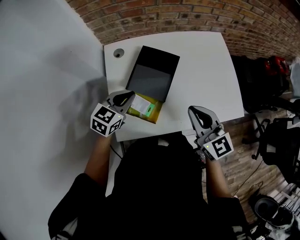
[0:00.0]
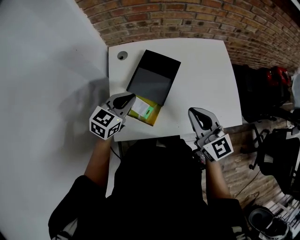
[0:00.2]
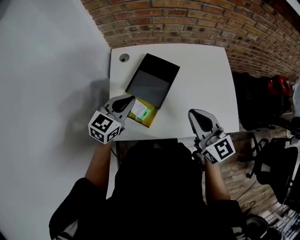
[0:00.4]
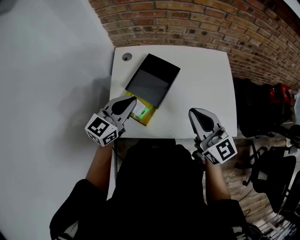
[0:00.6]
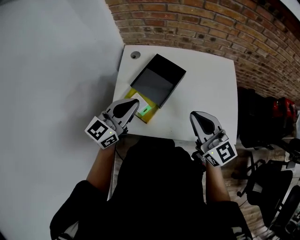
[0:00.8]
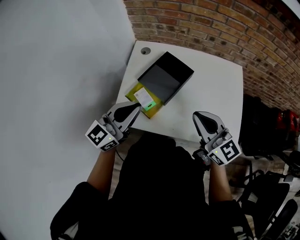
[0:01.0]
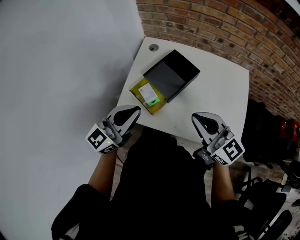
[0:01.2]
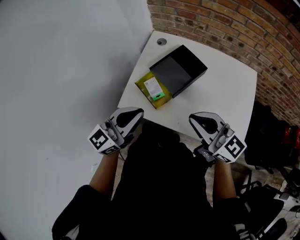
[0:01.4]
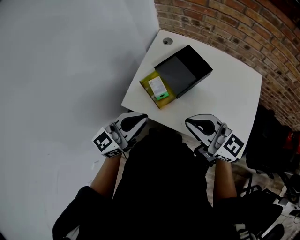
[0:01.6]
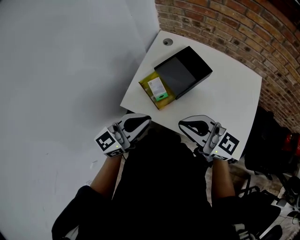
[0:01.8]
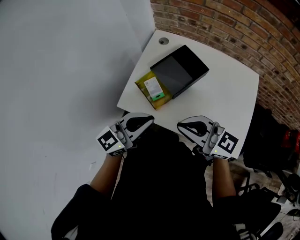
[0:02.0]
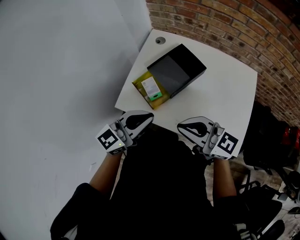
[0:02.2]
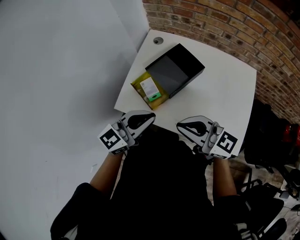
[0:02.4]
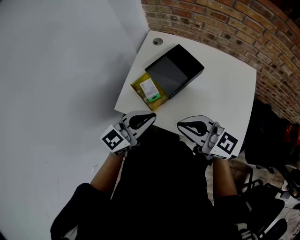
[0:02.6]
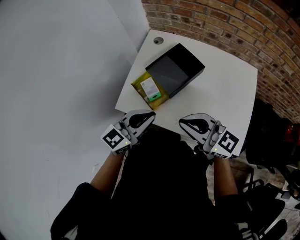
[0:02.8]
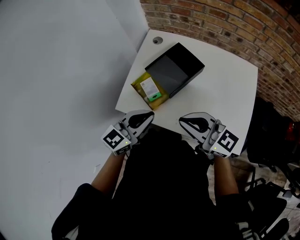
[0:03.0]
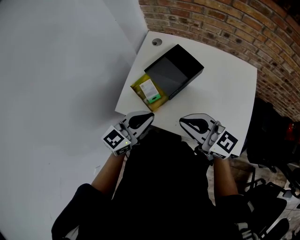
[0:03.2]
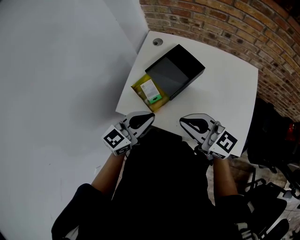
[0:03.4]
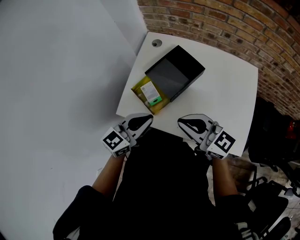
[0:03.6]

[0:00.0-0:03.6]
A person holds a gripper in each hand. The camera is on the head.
0:00.0 to 0:01.8: The right gripper shifts by about 10 cm, and changes its angle by roughly 60 degrees. The left gripper moves roughly 25 cm, and tilts its fingers approximately 30 degrees upward.
0:01.8 to 0:03.6: The left gripper goes approximately 5 cm downward; the right gripper shifts by some 5 cm.

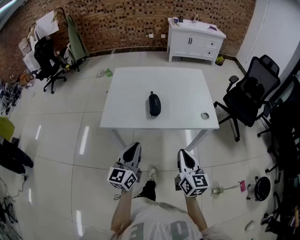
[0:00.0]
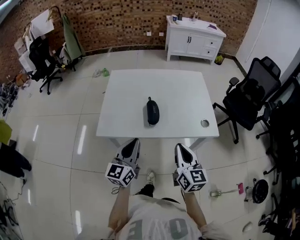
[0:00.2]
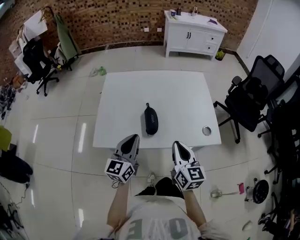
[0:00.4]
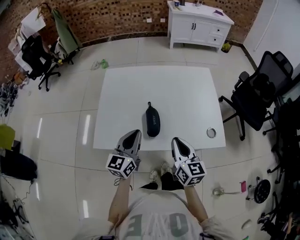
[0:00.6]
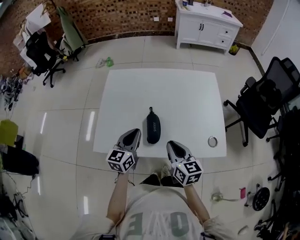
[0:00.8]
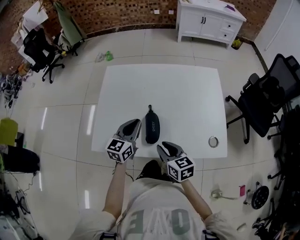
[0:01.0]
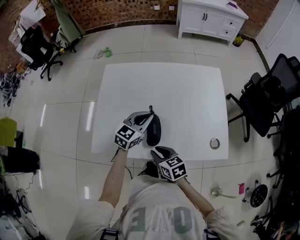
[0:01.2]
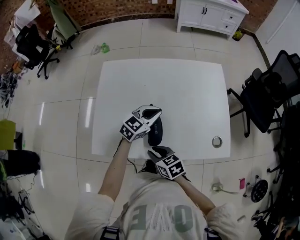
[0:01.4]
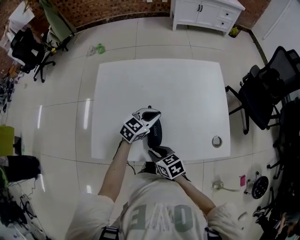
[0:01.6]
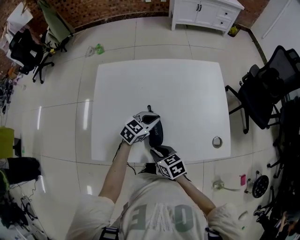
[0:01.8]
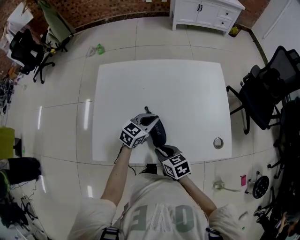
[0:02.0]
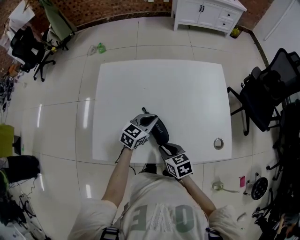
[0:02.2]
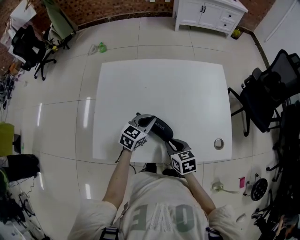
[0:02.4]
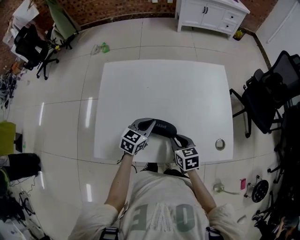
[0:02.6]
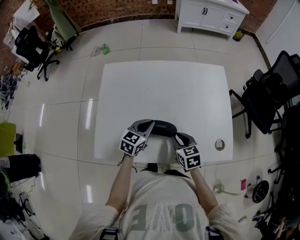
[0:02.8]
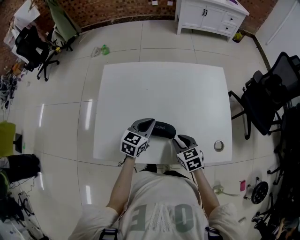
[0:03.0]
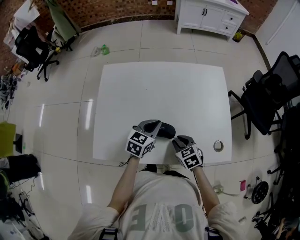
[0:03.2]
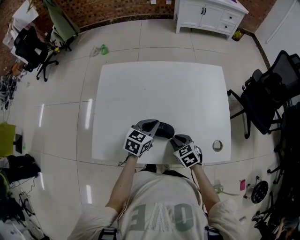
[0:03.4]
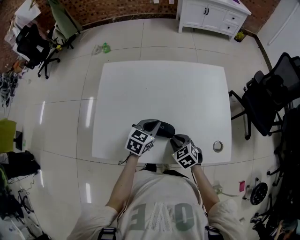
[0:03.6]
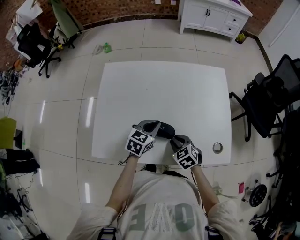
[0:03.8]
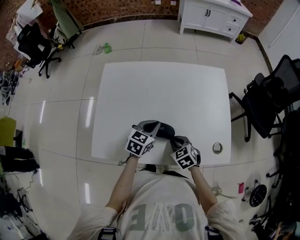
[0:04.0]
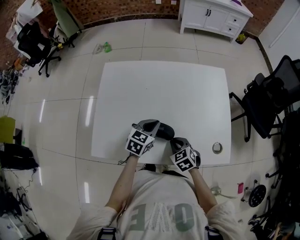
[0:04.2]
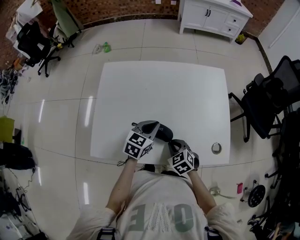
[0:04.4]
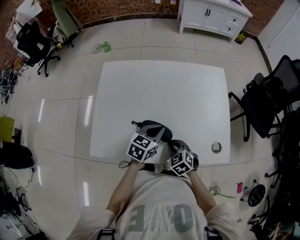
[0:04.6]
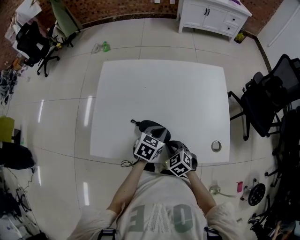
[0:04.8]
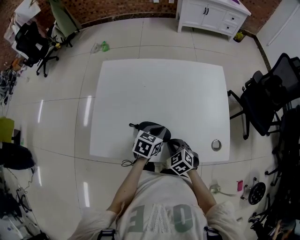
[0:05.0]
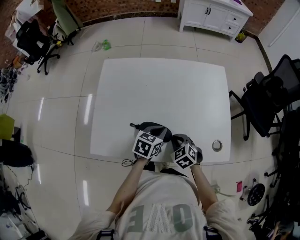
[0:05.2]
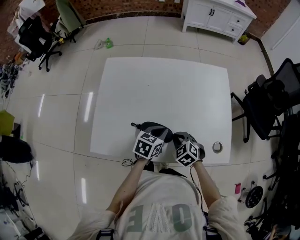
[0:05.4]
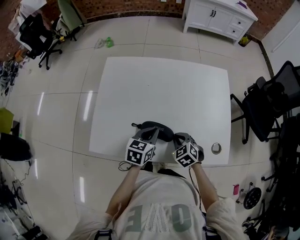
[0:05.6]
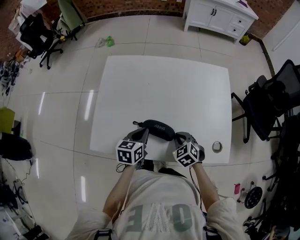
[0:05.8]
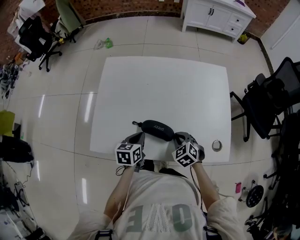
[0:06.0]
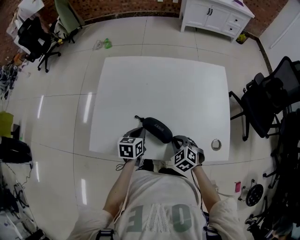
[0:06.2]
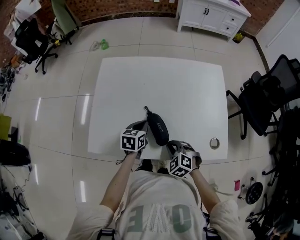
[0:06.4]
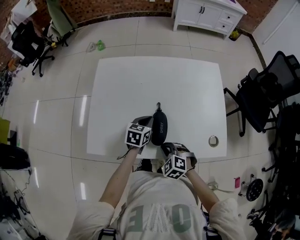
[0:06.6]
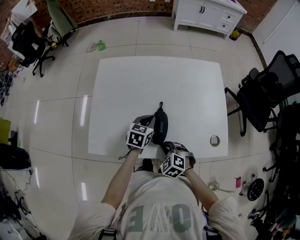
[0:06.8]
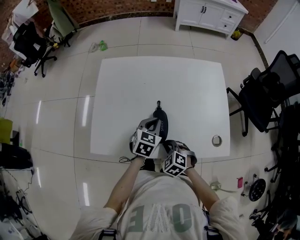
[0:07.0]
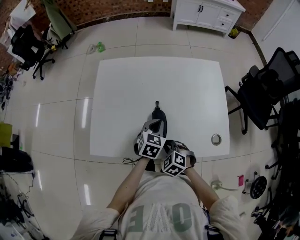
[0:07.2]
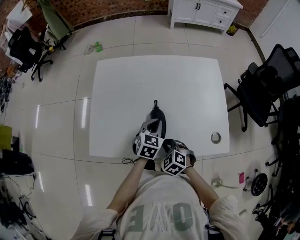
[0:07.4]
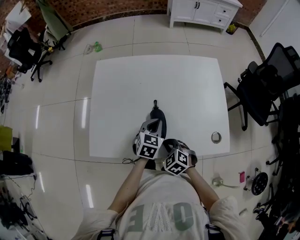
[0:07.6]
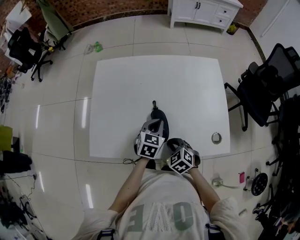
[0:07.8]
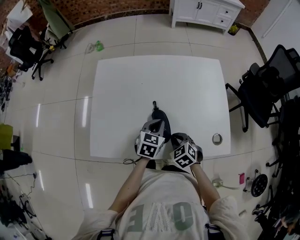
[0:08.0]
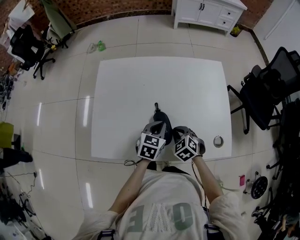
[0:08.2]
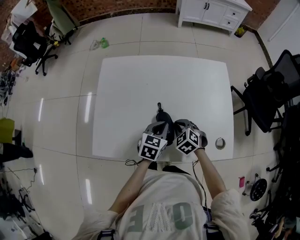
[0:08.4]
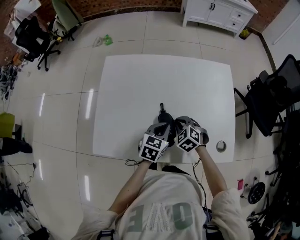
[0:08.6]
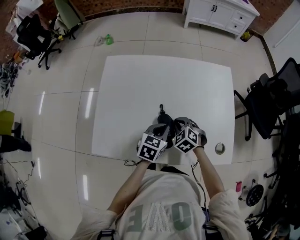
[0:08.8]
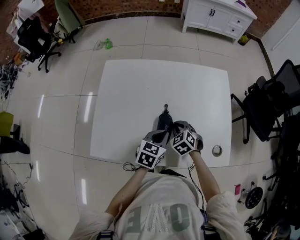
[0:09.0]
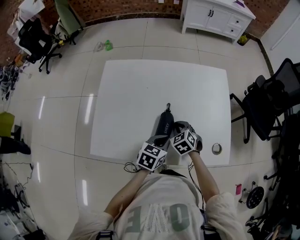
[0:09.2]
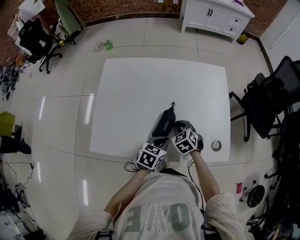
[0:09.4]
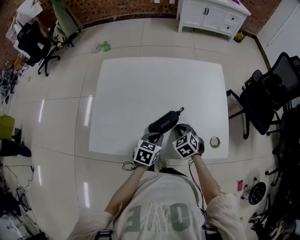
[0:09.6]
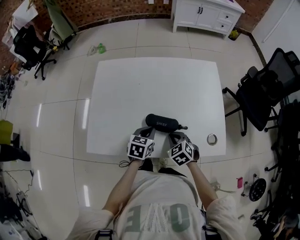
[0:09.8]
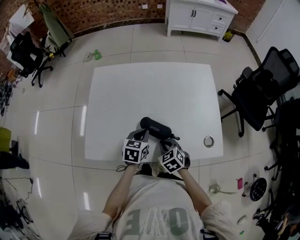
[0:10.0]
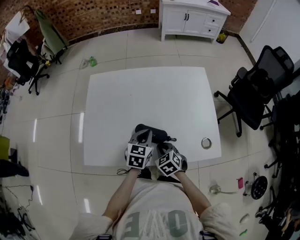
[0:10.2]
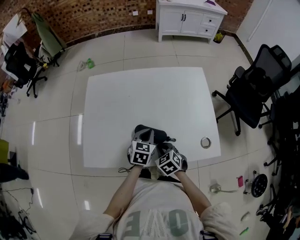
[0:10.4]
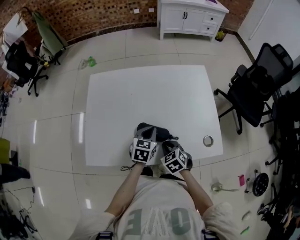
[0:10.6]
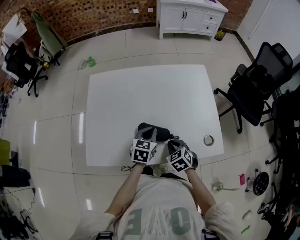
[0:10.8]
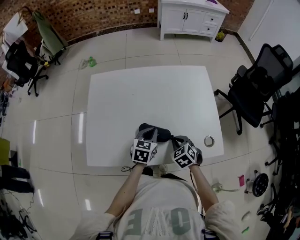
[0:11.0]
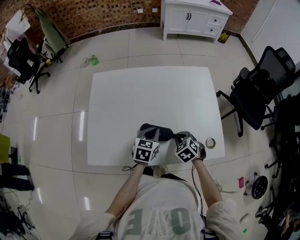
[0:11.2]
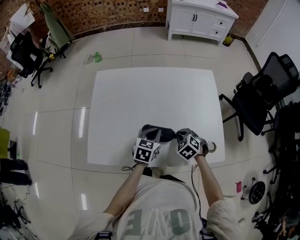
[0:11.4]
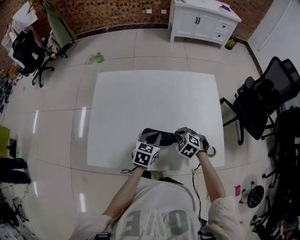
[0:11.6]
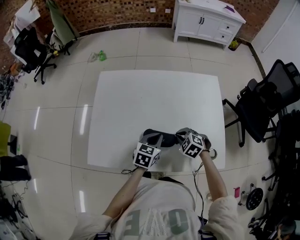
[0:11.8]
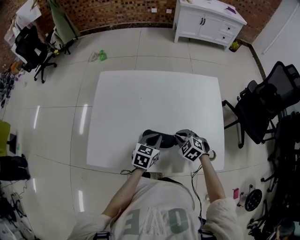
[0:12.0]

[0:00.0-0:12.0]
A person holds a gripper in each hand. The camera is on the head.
0:00.0 to 0:01.6: The left gripper travels forward by some 40 cm, and turns by approximately 50 degrees, while the right gripper travels forward, downward and to the left by about 35 cm, and swivels approximately 50 degrees.
0:01.6 to 0:03.0: The right gripper heads to the right and forward, covering about 15 cm, and rotates some 20 degrees, while the left gripper turns by about 20 degrees.
0:03.0 to 0:04.4: There are only small adjustments of the grippers.
0:04.4 to 0:06.0: The left gripper shifts some 10 cm to the left and backward, and rotates some 30 degrees.
0:06.0 to 0:07.6: The right gripper moves backward and to the left, some 10 cm. Meanwhile the left gripper travels to the right by roughly 10 cm, and turns by some 30 degrees.
0:07.6 to 0:09.0: The right gripper travels forward by roughly 15 cm.
0:09.0 to 0:10.4: The right gripper goes roughly 10 cm backward.
0:10.4 to 0:12.0: The right gripper moves forward, about 10 cm, and swivels approximately 30 degrees.

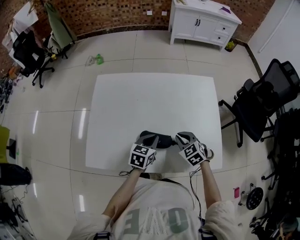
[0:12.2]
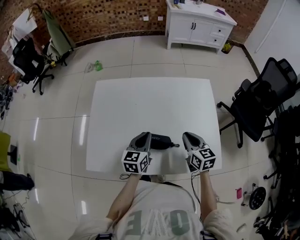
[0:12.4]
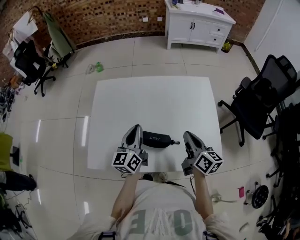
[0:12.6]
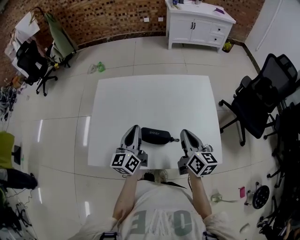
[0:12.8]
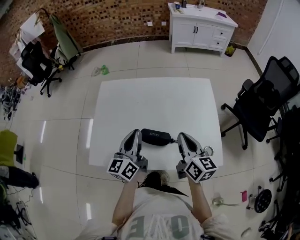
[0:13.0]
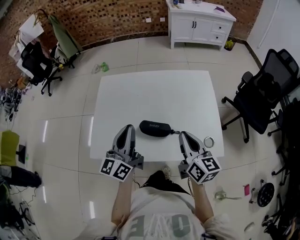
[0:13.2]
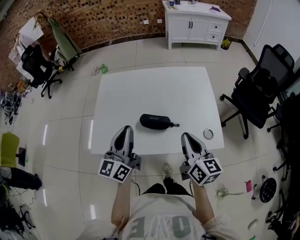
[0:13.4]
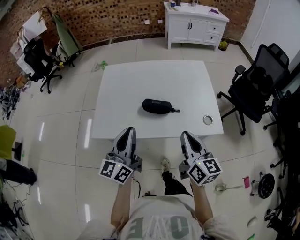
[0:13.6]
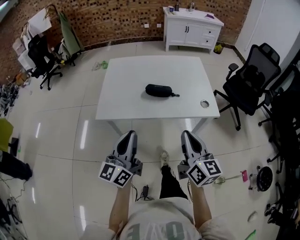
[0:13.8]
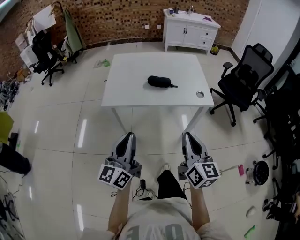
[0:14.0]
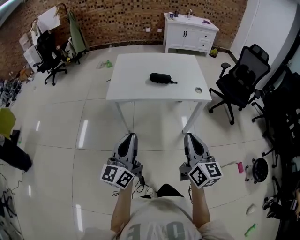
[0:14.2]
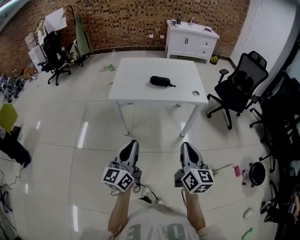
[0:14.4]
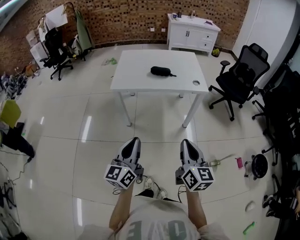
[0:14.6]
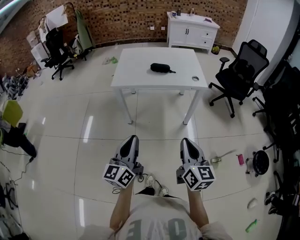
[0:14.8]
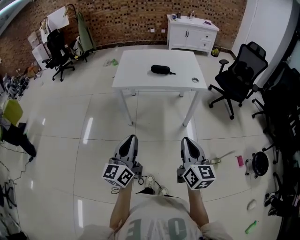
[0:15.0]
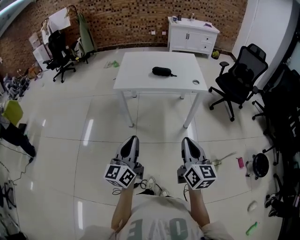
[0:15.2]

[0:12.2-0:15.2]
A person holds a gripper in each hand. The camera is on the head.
0:12.2 to 0:13.8: The pair of grippers is taken backward, approximately 40 cm. Both grippers move upward, roughly 20 cm. The right gripper points its fingers roughly 40 degrees further upward. The left gripper tips its fingers upward by roughly 50 degrees.
0:13.8 to 0:15.2: Both grippers move backward, roughly 40 cm.

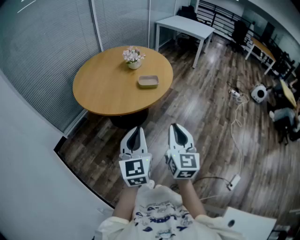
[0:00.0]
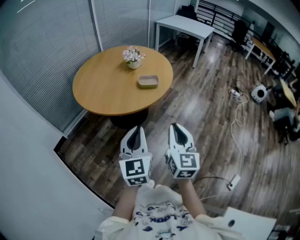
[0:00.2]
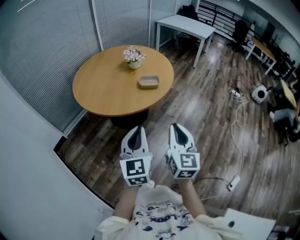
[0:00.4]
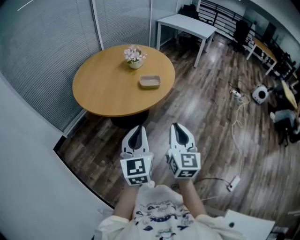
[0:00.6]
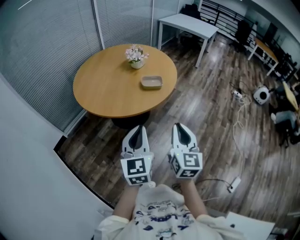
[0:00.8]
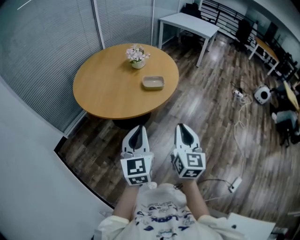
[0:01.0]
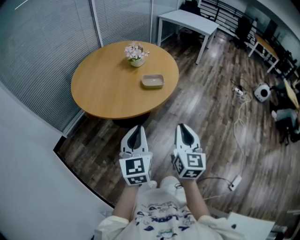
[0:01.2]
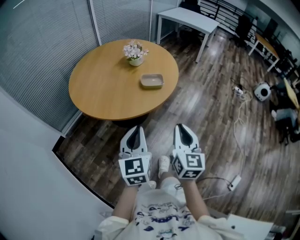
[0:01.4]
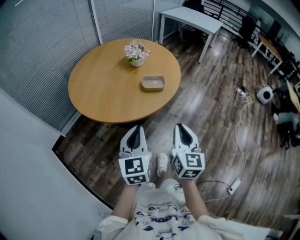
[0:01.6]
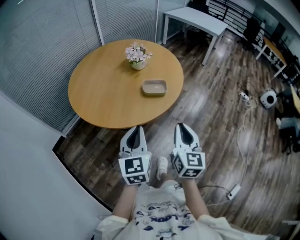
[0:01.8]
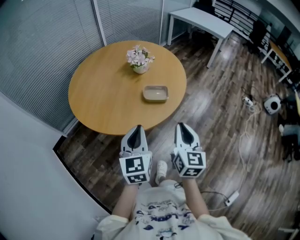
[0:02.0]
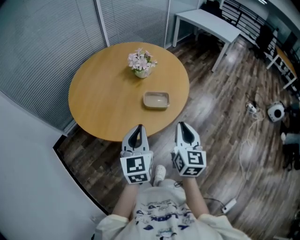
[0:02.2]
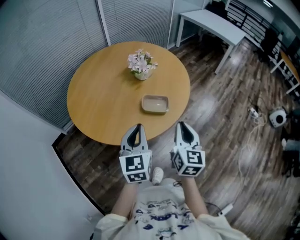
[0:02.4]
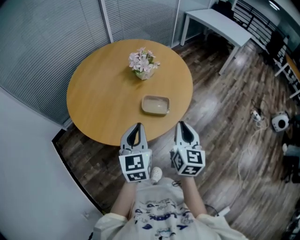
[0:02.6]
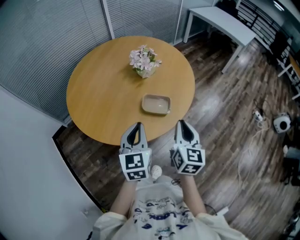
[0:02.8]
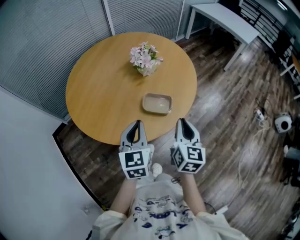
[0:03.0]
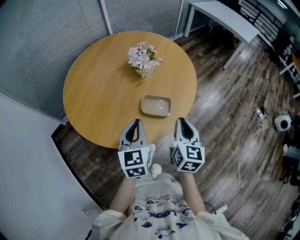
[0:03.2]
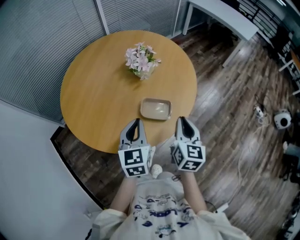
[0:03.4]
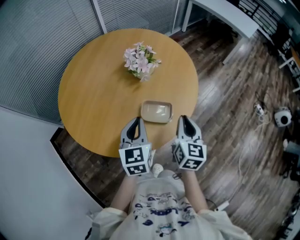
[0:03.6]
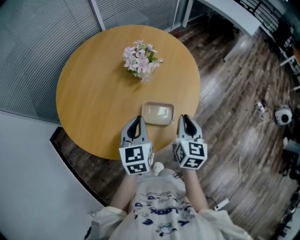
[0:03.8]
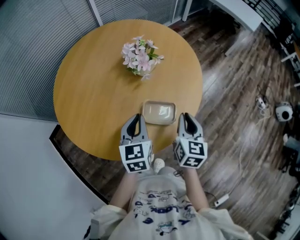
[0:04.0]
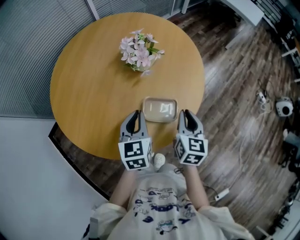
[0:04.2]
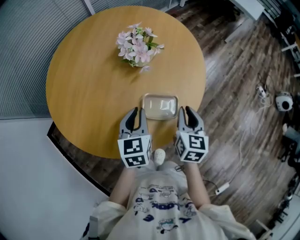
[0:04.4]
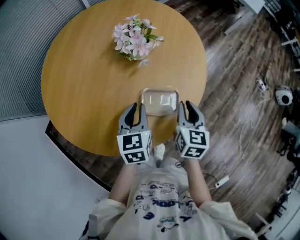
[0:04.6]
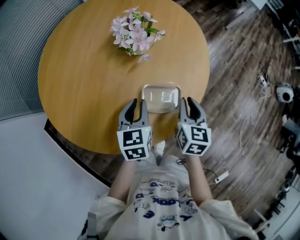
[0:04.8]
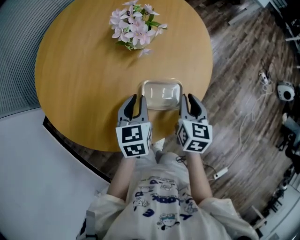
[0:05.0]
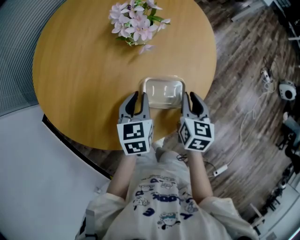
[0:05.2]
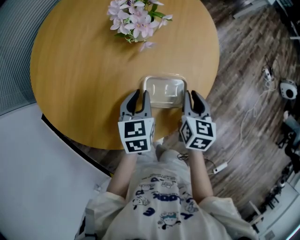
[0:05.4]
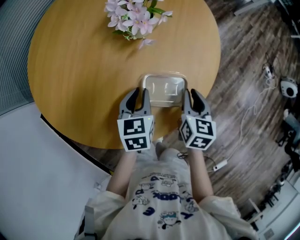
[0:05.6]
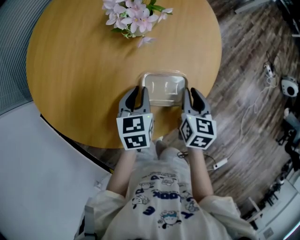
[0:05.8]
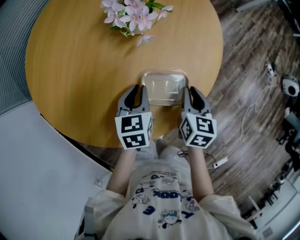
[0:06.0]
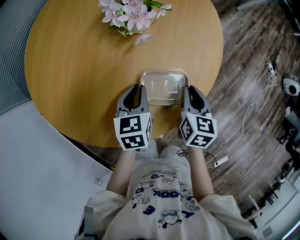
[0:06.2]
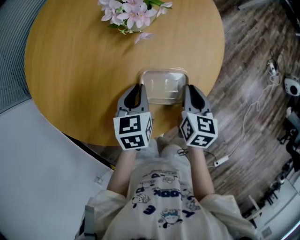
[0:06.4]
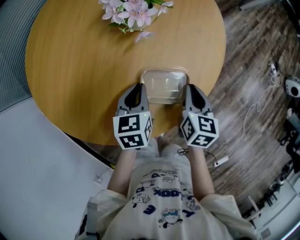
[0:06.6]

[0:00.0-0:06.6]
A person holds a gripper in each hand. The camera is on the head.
0:00.0 to 0:01.6: The right gripper goes roughly 15 cm forward and downward. Meanwhile the left gripper moves forward, roughly 15 cm.
0:01.6 to 0:03.2: Both grippers travel together forward, approximately 30 cm.
0:03.2 to 0:05.0: The grippers both shift downward and forward by roughly 20 cm. The left gripper changes its angle by approximately 20 degrees.
0:05.0 to 0:06.6: Both grippers travel together downward, some 5 cm.
